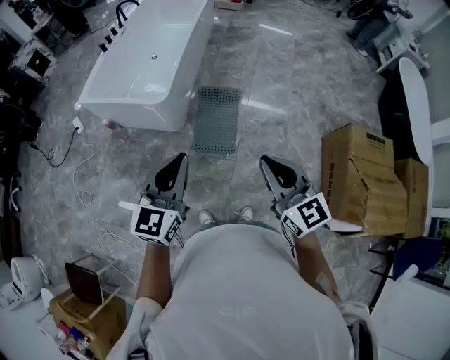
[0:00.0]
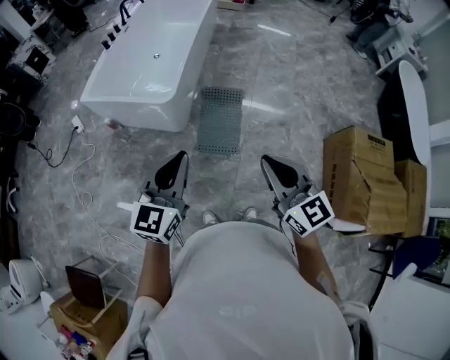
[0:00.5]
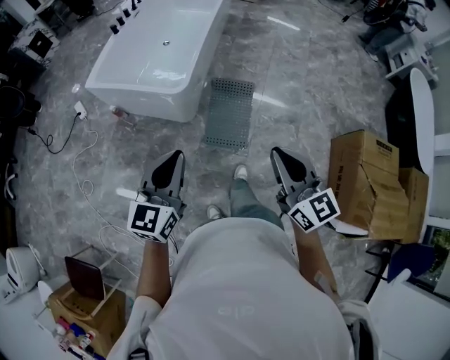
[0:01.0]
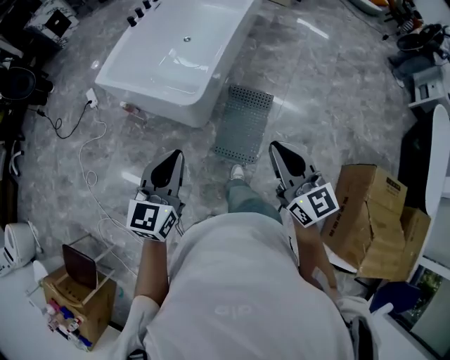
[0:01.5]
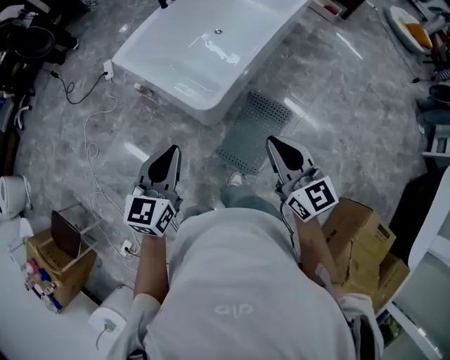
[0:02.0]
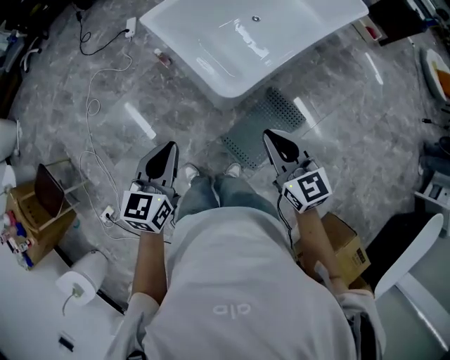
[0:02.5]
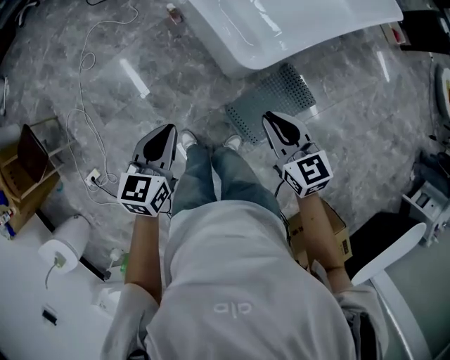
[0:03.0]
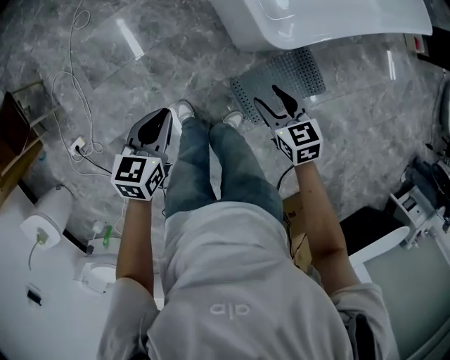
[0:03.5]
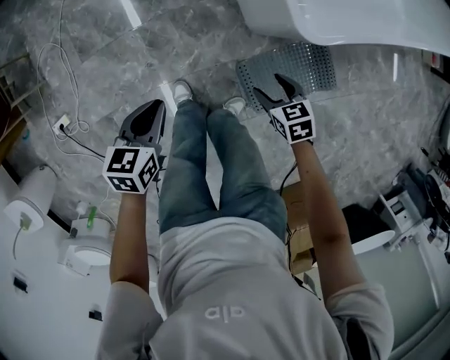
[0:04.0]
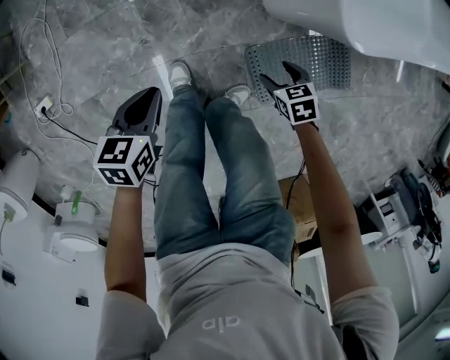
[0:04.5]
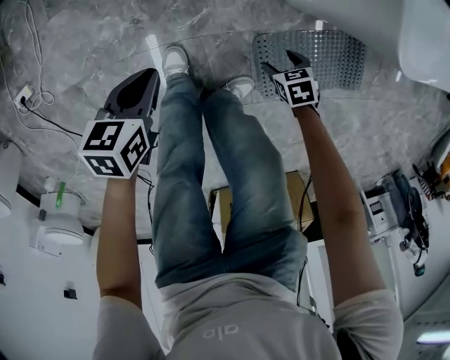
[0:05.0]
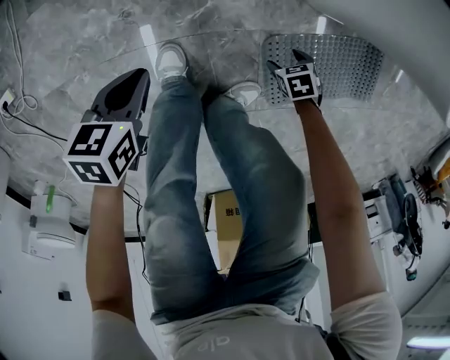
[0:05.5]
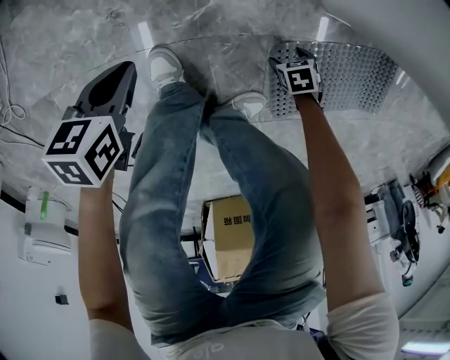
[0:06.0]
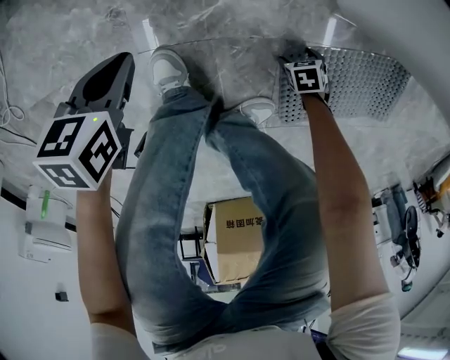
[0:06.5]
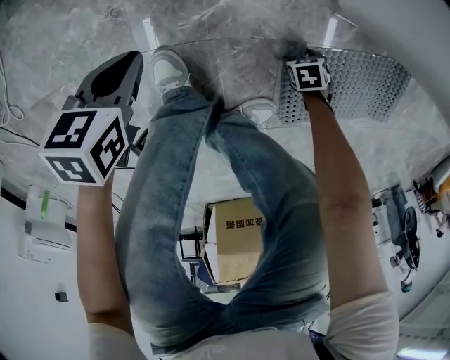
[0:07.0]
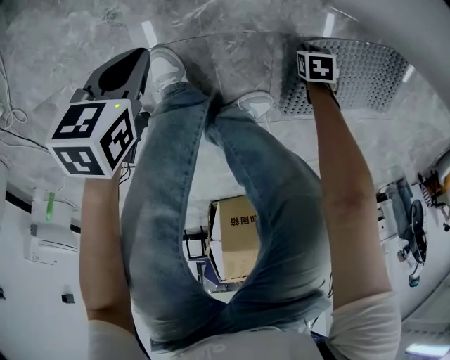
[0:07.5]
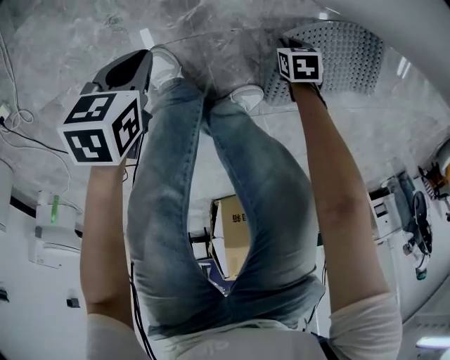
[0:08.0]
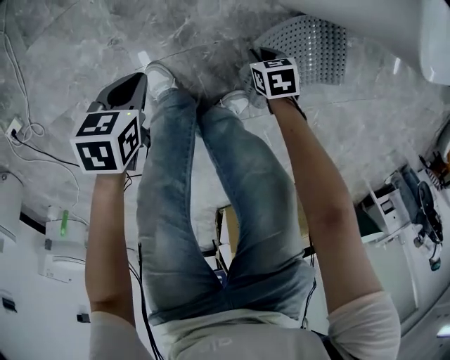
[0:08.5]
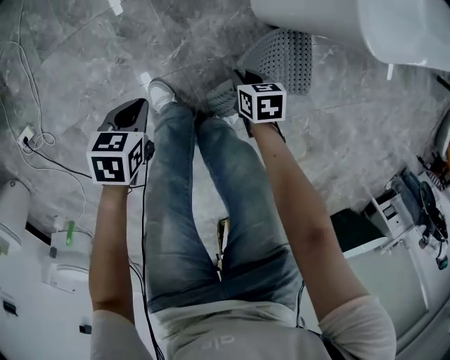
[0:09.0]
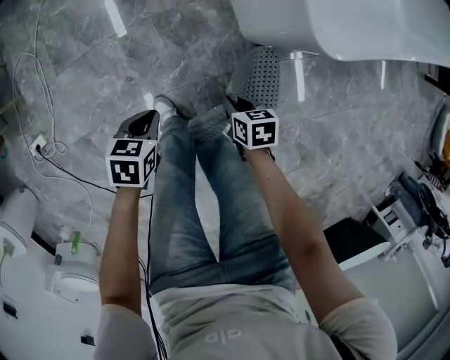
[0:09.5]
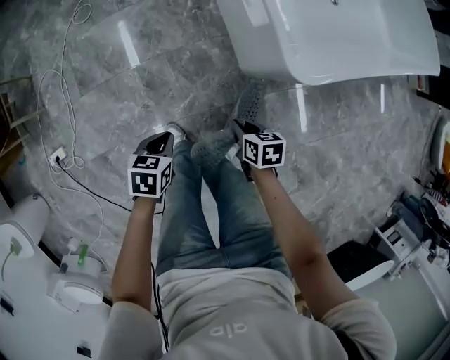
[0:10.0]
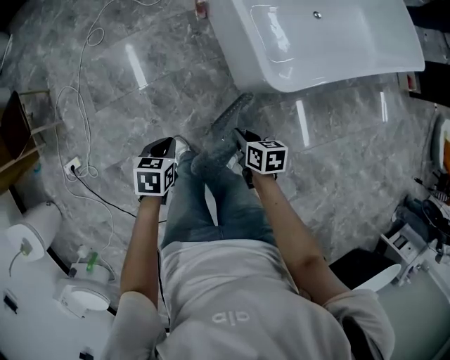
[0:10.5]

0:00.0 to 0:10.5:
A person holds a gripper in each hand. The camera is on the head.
0:00.0 to 0:02.0: The right gripper moves roughly 50 cm, and rotates some 30 degrees, while the left gripper ends up roughly 35 cm from where it was, and changes its angle by about 30 degrees.
0:02.0 to 0:04.0: The grippers both shift downward by about 50 cm. The left gripper rotates approximately 50 degrees, while the right gripper points its fingers some 50 degrees further downward, and opens its fingers.
0:04.0 to 0:06.5: The grippers both shift downward by approximately 60 cm. The right gripper rotates about 30 degrees, while the left gripper turns by some 20 degrees.
0:06.5 to 0:08.5: The left gripper heads upward, covering about 15 cm. The right gripper travels upward by about 25 cm, turns by about 20 degrees, and closes its fingers.
0:08.5 to 0:10.5: Both grippers travel together upward, some 40 cm. The right gripper turns by roughly 30 degrees.

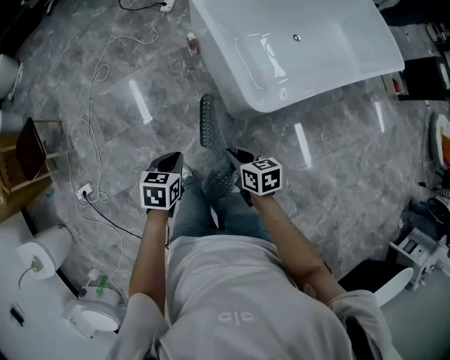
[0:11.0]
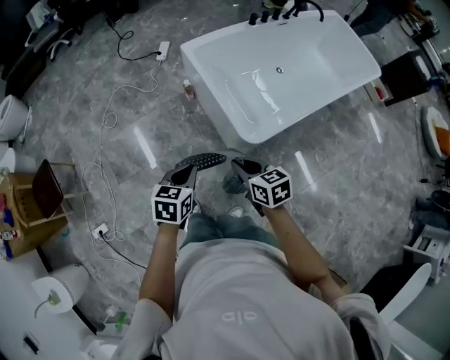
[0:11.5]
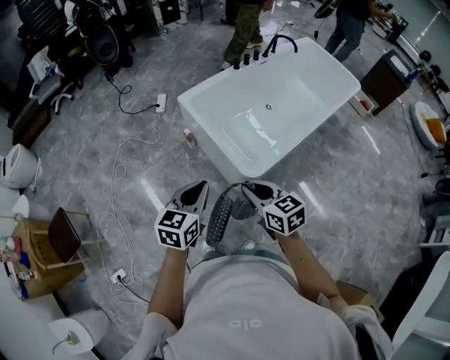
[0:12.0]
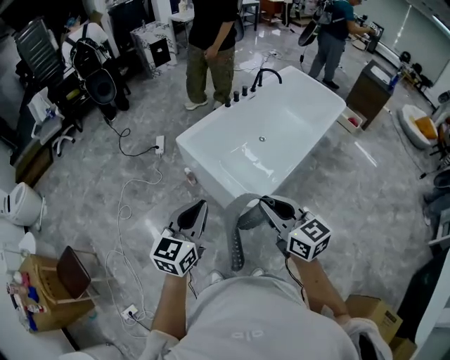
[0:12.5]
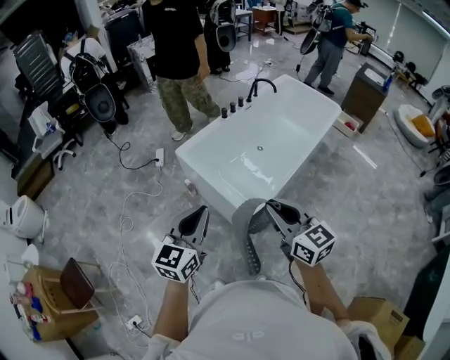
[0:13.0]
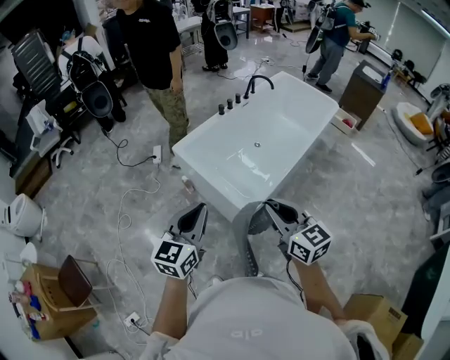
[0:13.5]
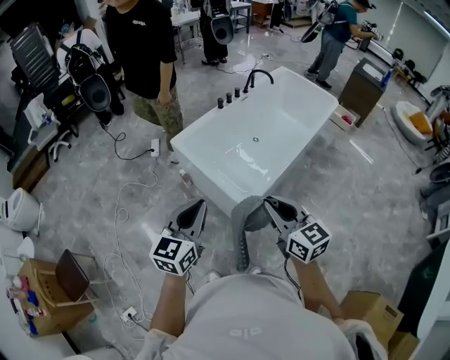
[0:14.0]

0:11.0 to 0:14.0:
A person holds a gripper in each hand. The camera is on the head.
0:11.0 to 0:12.5: The two grippers go about 40 cm upward. The right gripper tilts its fingers approximately 30 degrees upward, while the left gripper angles its fingers upward, by roughly 40 degrees.
0:12.5 to 0:14.0: The grippers make only small movements.

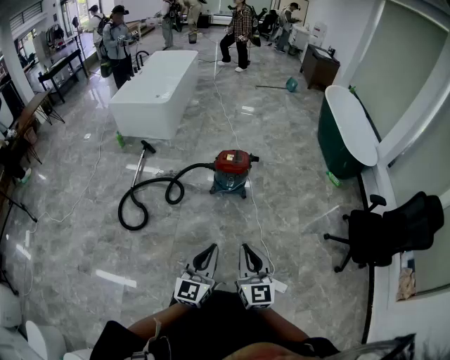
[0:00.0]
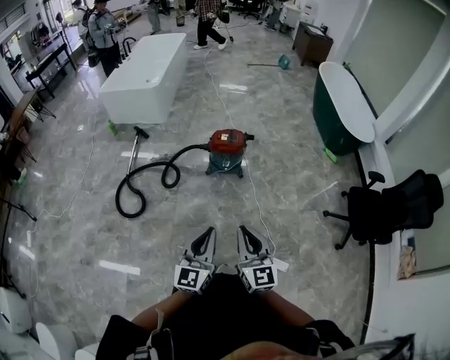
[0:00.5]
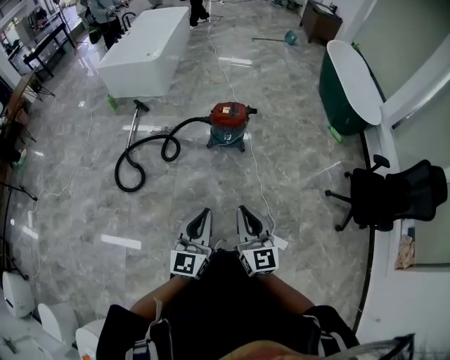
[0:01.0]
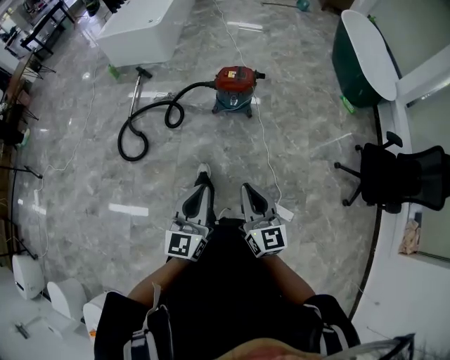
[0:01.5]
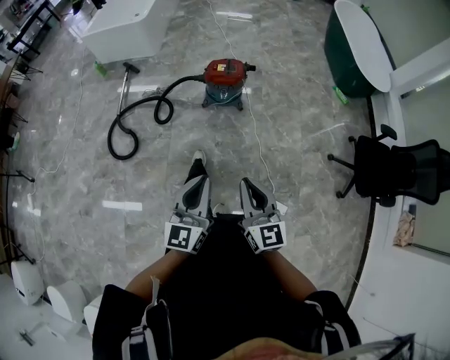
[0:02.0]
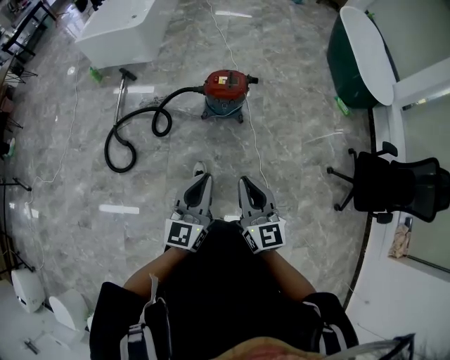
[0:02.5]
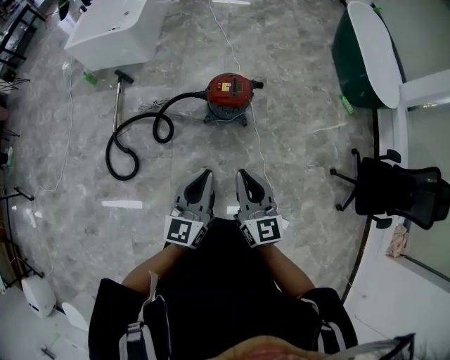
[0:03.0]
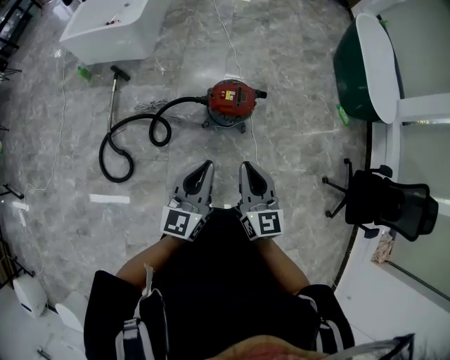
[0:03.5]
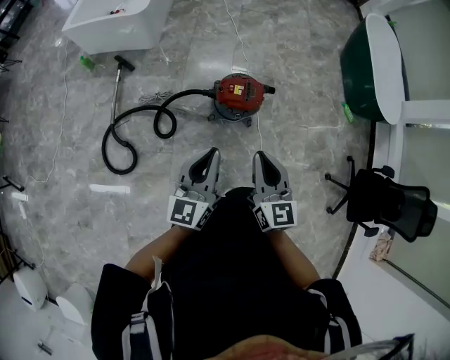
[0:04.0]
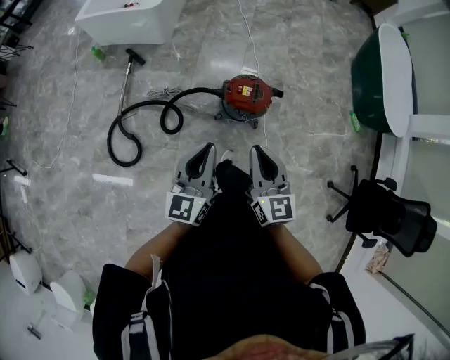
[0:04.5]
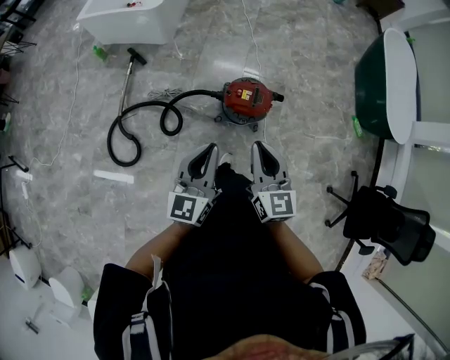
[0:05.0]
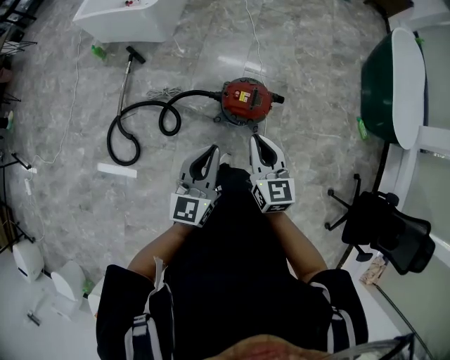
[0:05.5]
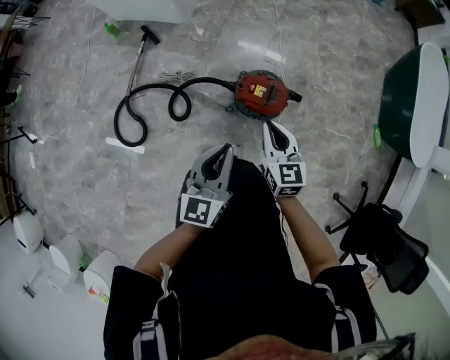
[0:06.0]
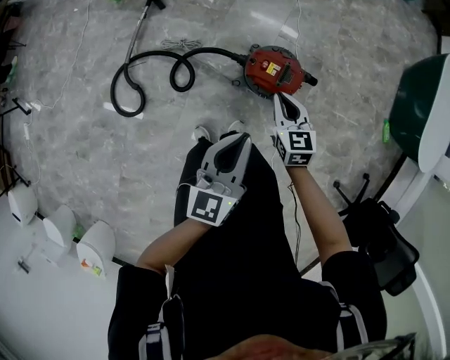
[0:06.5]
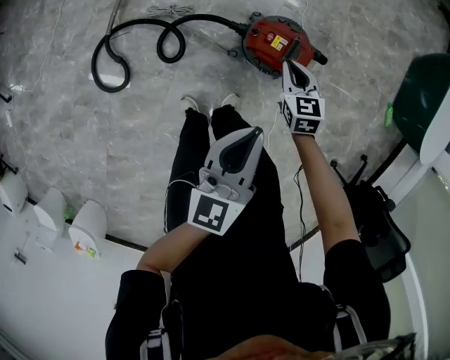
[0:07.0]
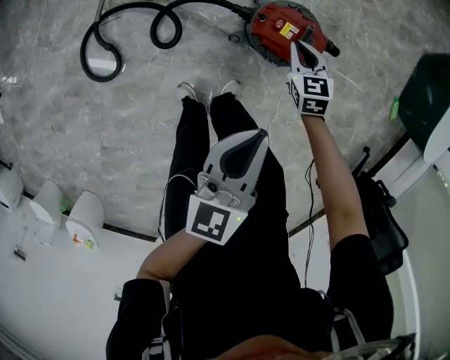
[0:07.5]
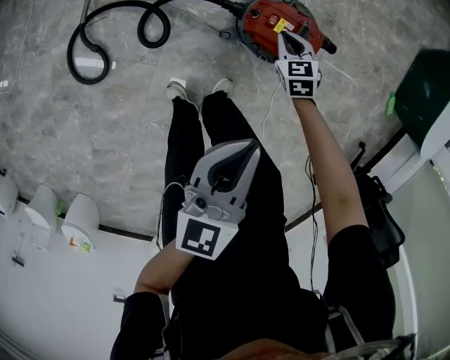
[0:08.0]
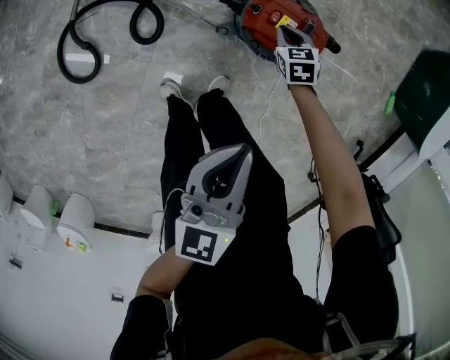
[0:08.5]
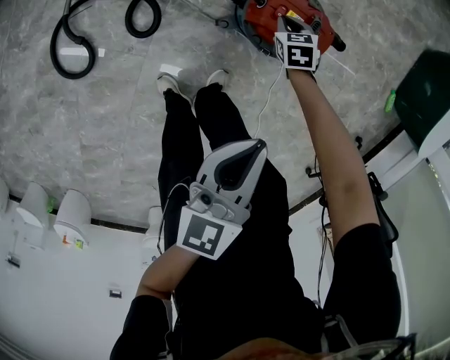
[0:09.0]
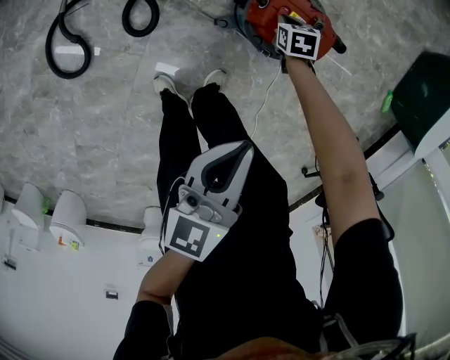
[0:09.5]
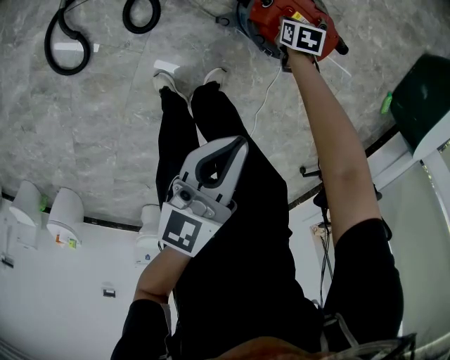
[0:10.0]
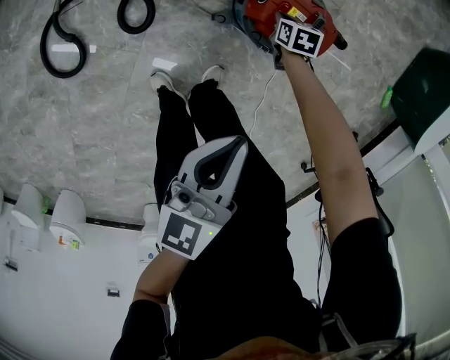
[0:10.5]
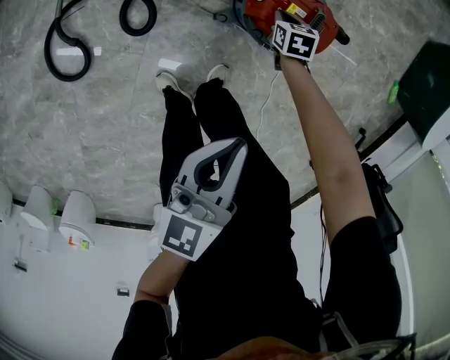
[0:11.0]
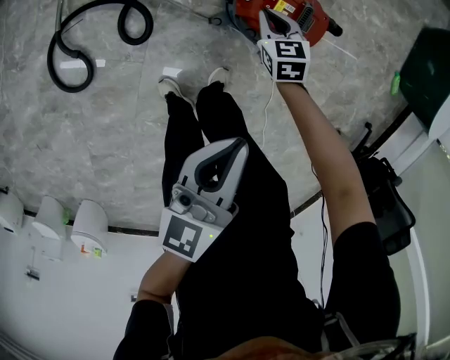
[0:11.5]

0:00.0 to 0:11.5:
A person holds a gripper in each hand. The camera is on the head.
0:00.0 to 0:02.0: The right gripper moves about 5 cm. The left gripper moves approximately 5 cm.
0:02.0 to 0:04.0: The two grippers travel together, forward, some 40 cm.
0:04.0 to 0:06.0: The right gripper moves forward and downward, approximately 20 cm. The left gripper moves forward, to the right and downward, approximately 15 cm.
0:06.0 to 0:07.5: The right gripper goes some 30 cm downward and forward, and changes its angle by approximately 20 degrees, while the left gripper travels downward by about 15 cm.
0:07.5 to 0:09.5: The left gripper moves downward, approximately 10 cm. The right gripper heads downward, covering about 20 cm, and swivels some 30 degrees.
0:09.5 to 0:11.5: The right gripper goes about 10 cm upward.

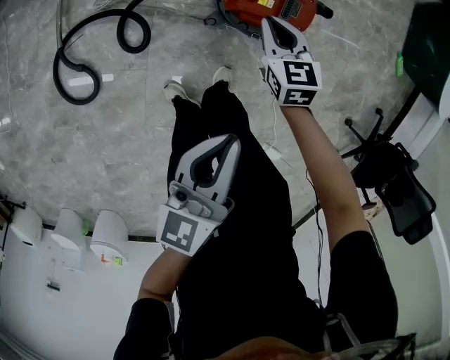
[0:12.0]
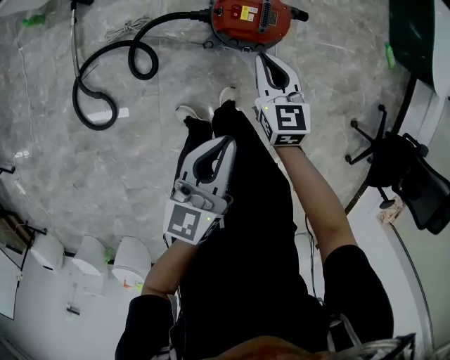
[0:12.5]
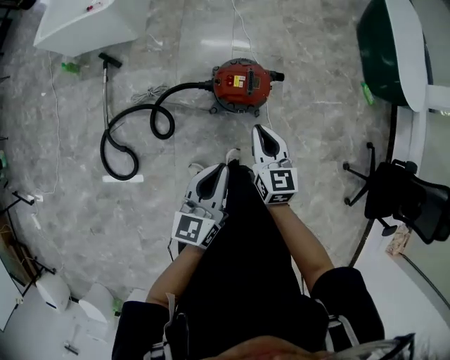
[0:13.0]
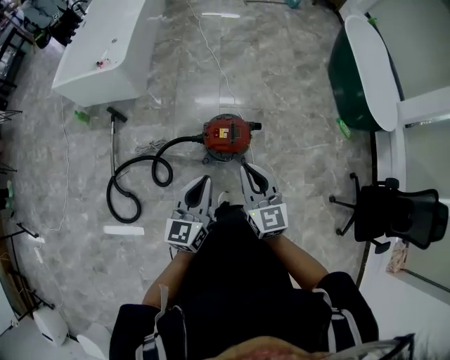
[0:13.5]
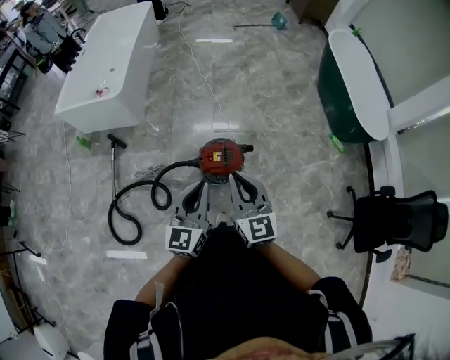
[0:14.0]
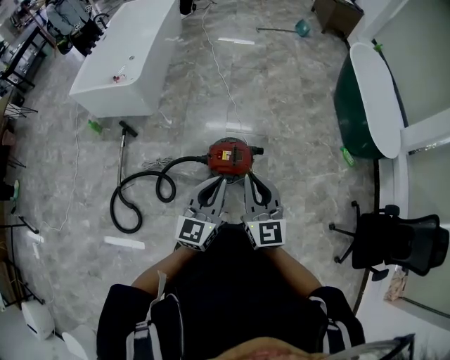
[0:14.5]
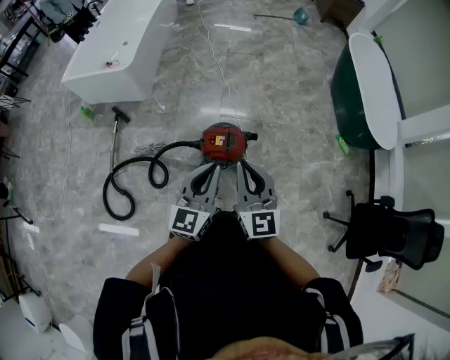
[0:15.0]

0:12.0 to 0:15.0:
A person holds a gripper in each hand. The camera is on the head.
0:12.0 to 0:13.5: The right gripper travels upward by about 40 cm, and changes its angle by some 30 degrees; the left gripper travels upward by some 25 cm, and rotates some 20 degrees.
0:13.5 to 0:15.0: The right gripper travels upward by some 5 cm; the left gripper travels to the right and upward by about 10 cm.
